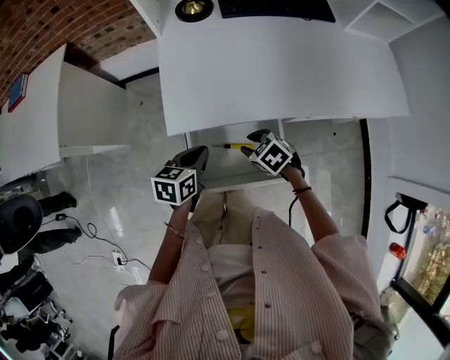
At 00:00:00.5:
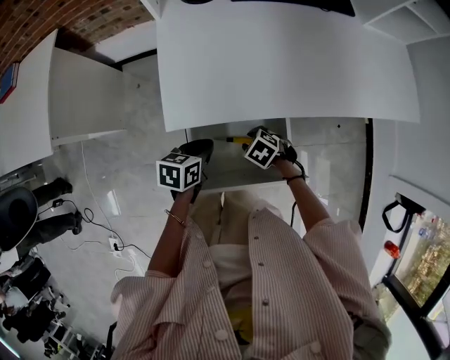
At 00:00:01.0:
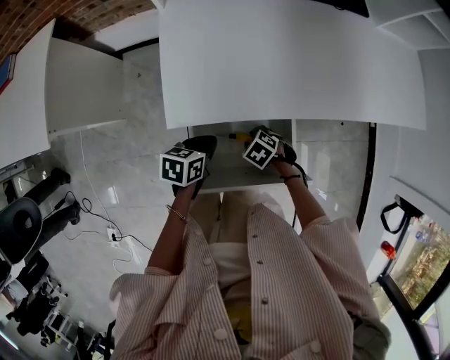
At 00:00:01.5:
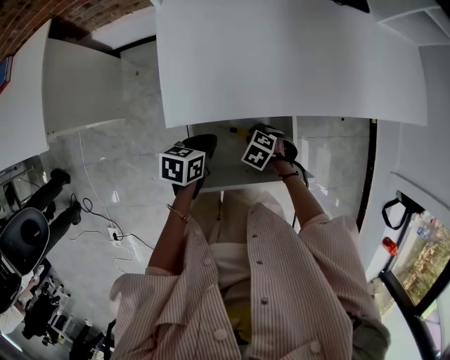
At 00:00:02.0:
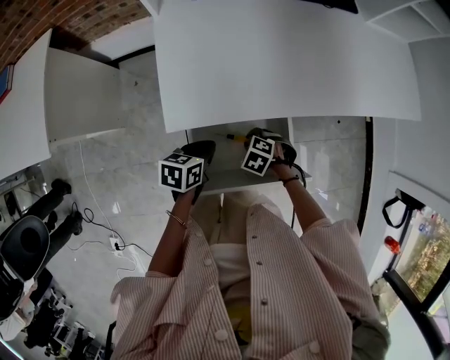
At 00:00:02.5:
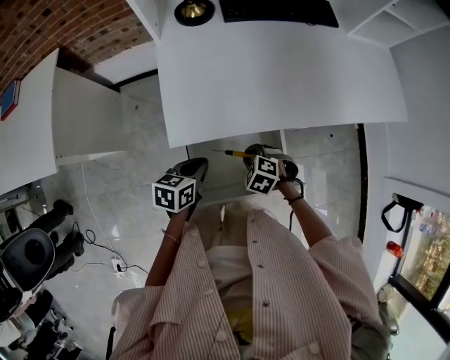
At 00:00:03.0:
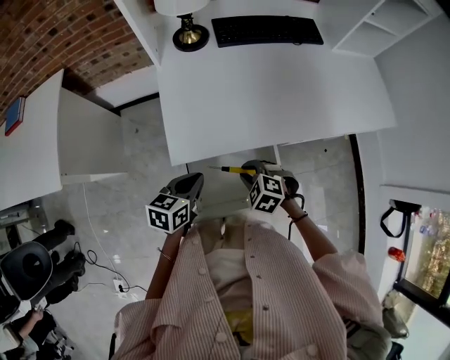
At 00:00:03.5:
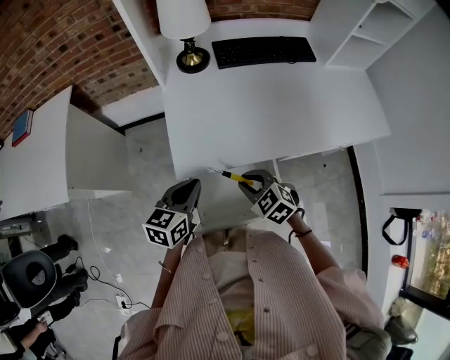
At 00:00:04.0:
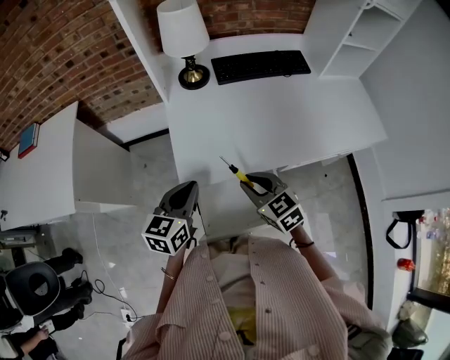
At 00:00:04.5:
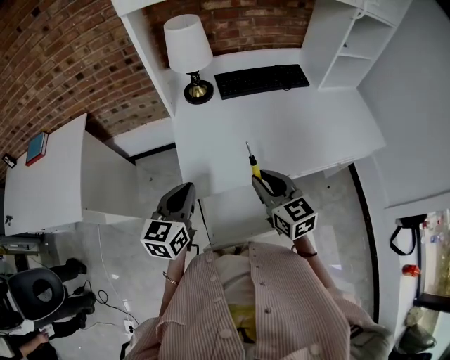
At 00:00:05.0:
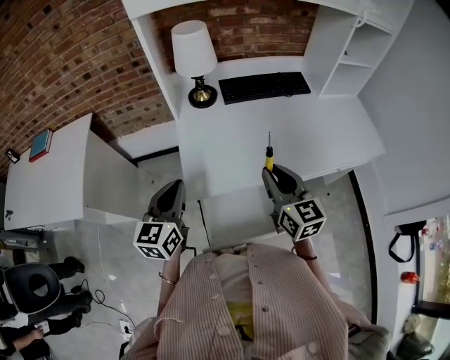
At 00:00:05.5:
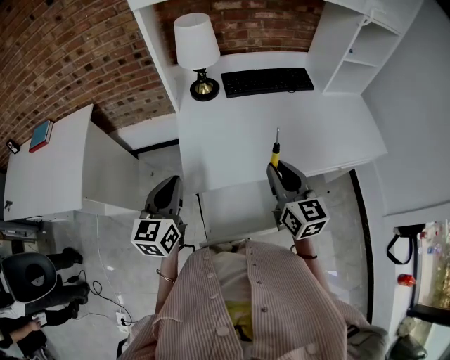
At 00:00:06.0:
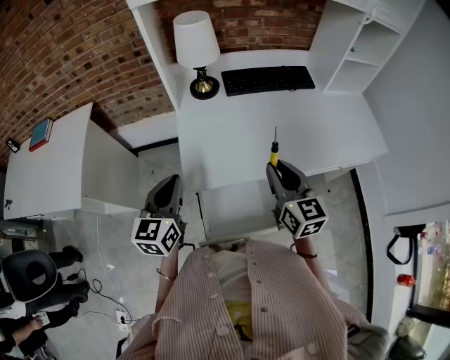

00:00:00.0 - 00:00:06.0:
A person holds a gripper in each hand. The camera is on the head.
00:00:00.0 - 00:00:02.0: Both grippers move downward, roughly 10 cm. The right gripper turns by approximately 30 degrees.
00:00:02.0 - 00:00:04.0: Both grippers move upward, some 25 cm. The left gripper swivels some 40 degrees. Meanwhile the right gripper points its fingers approximately 50 degrees further upward.
00:00:04.0 - 00:00:06.0: The right gripper shifts some 15 cm upward and to the right, and rotates roughly 30 degrees, while the left gripper shifts some 5 cm upward.

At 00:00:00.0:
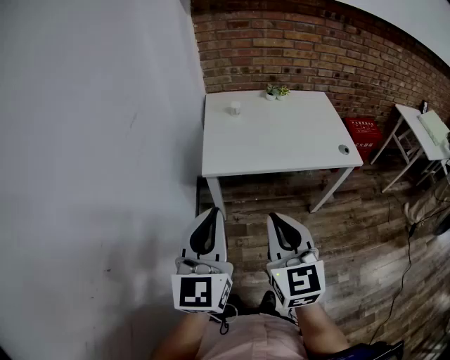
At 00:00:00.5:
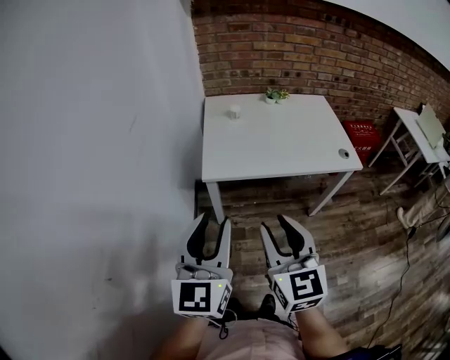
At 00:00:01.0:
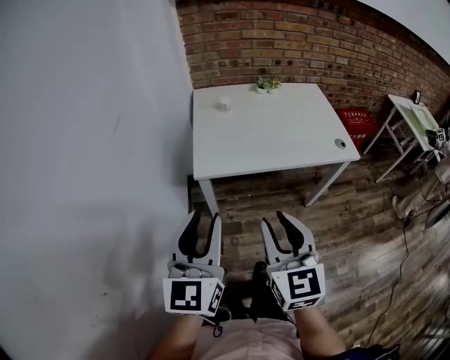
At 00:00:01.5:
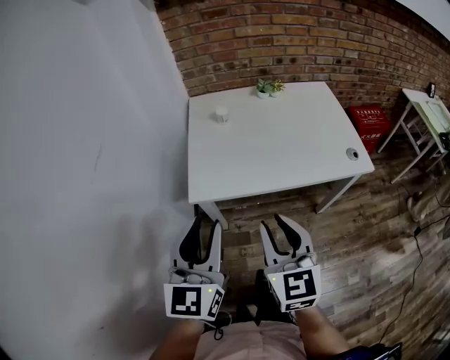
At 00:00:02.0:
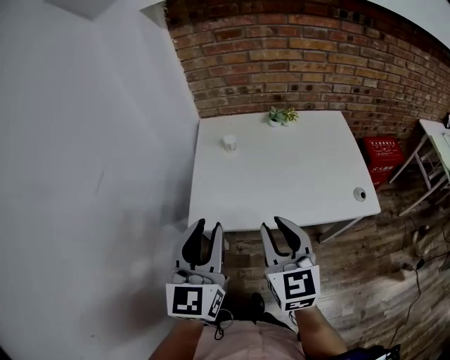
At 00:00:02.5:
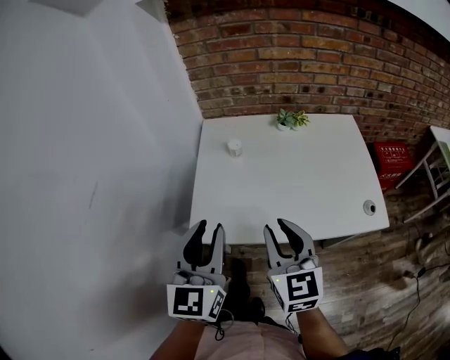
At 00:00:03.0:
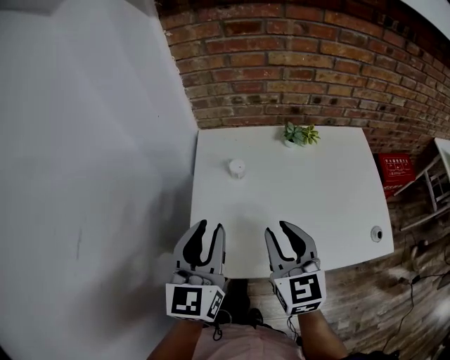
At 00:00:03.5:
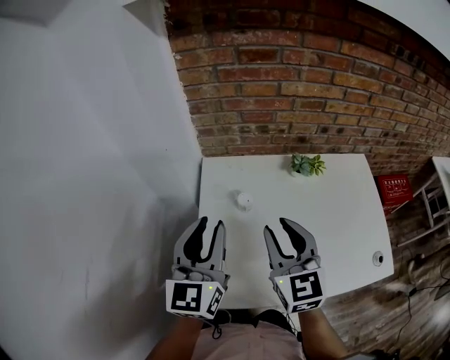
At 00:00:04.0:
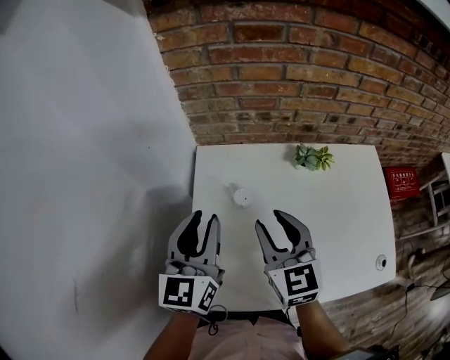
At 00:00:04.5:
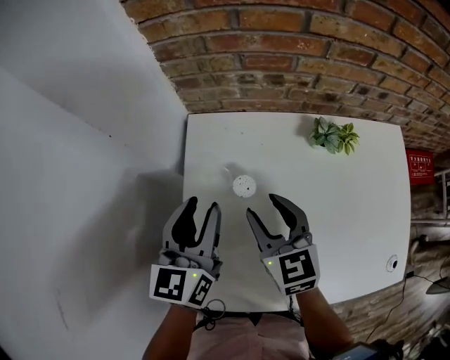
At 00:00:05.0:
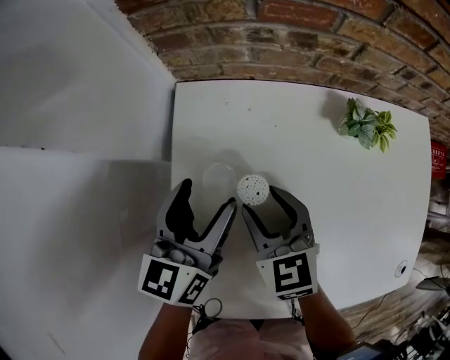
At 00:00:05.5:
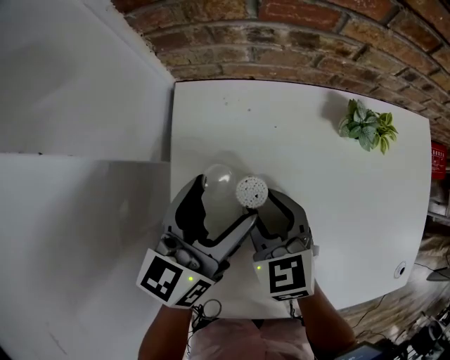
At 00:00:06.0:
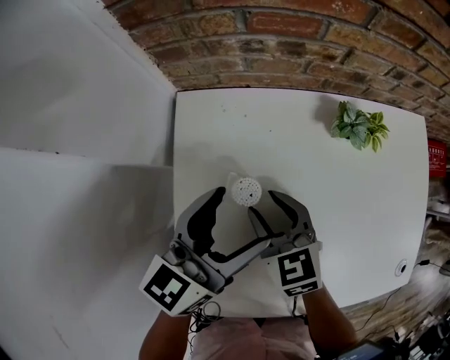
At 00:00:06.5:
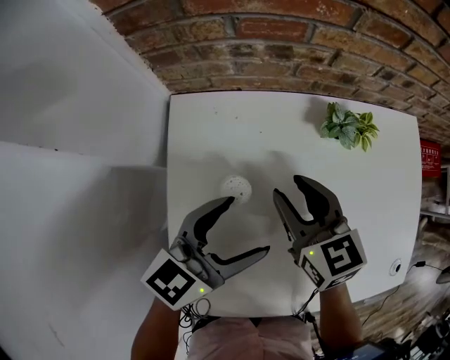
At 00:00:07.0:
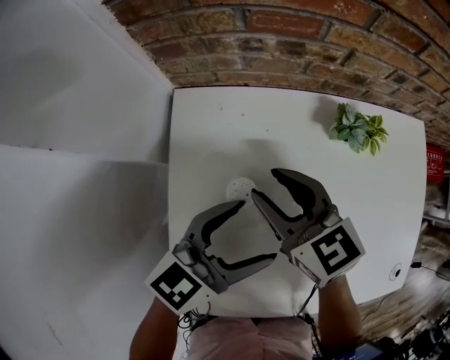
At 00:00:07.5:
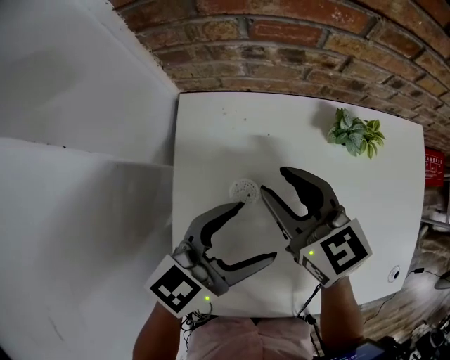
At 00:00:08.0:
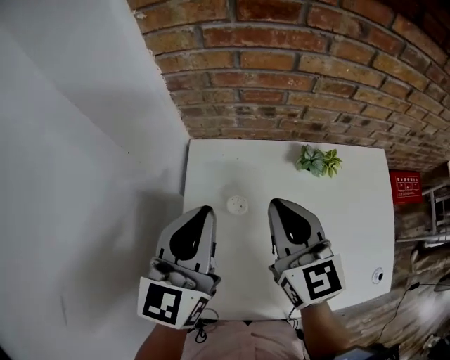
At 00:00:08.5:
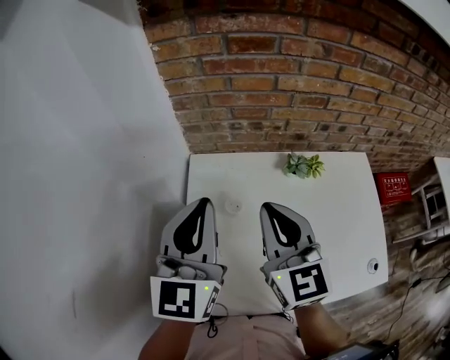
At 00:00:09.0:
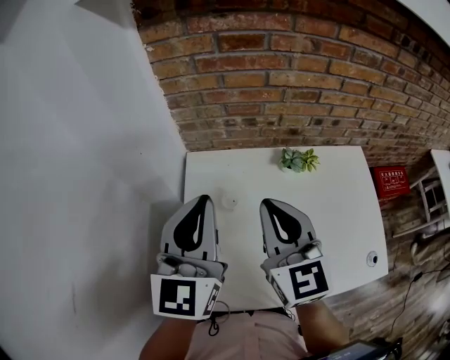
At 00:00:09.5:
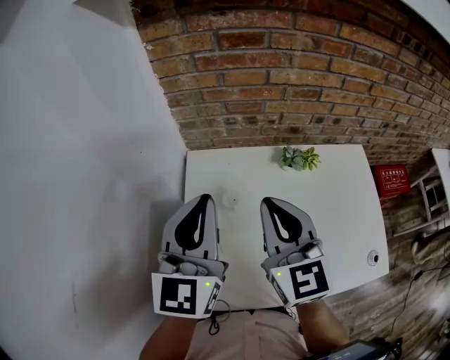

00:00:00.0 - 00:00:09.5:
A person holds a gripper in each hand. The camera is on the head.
00:00:00.0 - 00:00:02.0: Both grippers move forward, roughly 25 cm. The right gripper opens up.
00:00:02.0 - 00:00:04.0: The two grippers go about 35 cm forward.
00:00:04.0 - 00:00:05.5: The two grippers go roughly 20 cm downward and forward. The right gripper changes its angle by roughly 20 degrees. Meanwhile the left gripper changes its angle by about 20 degrees, and opens.
00:00:05.5 - 00:00:07.5: The left gripper moves to the right and backward, approximately 10 cm, and turns by approximately 30 degrees, while the right gripper moves upward, approximately 10 cm.
00:00:07.5 - 00:00:09.5: The right gripper moves upward and backward, about 25 cm, swivels some 30 degrees, and closes up, while the left gripper heads upward, covering approximately 25 cm, rotates approximately 50 degrees, and closes its fingers.

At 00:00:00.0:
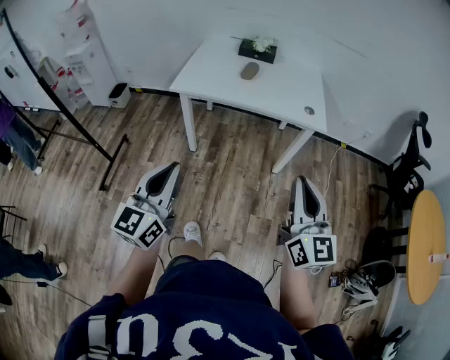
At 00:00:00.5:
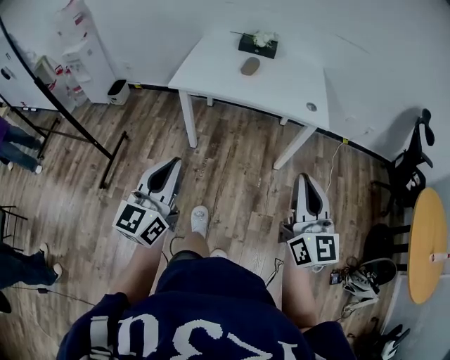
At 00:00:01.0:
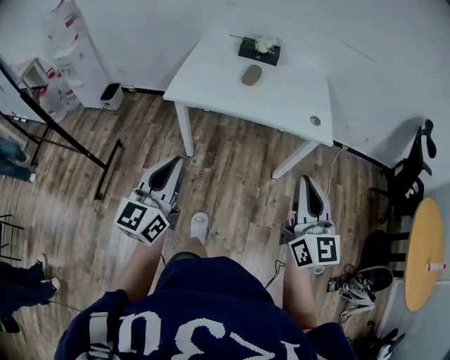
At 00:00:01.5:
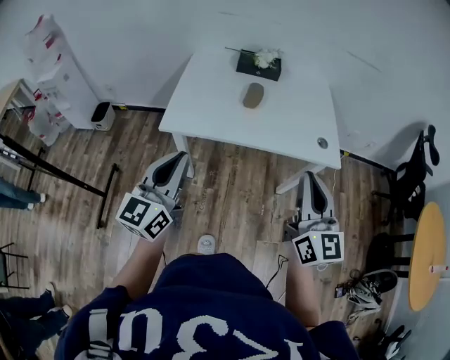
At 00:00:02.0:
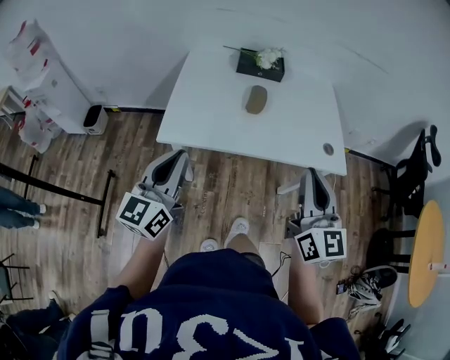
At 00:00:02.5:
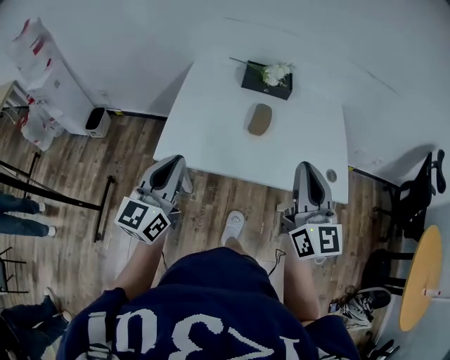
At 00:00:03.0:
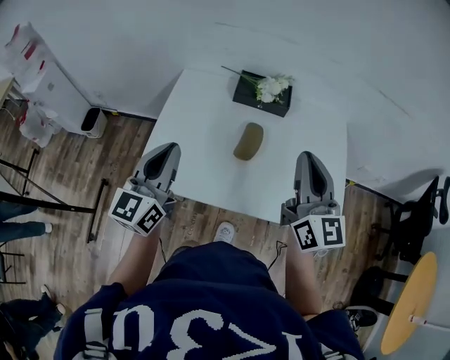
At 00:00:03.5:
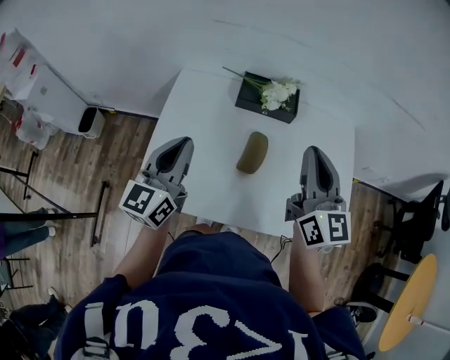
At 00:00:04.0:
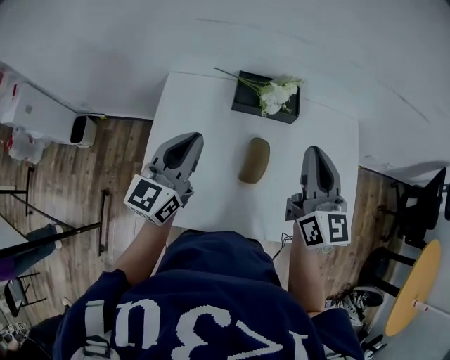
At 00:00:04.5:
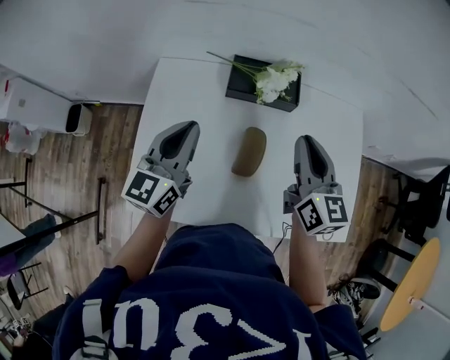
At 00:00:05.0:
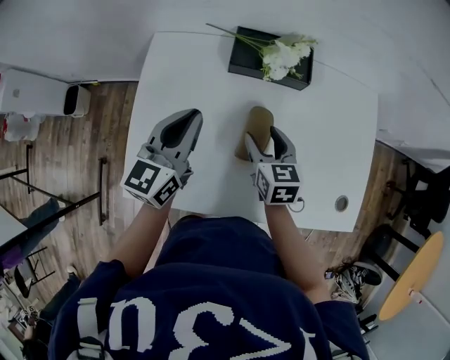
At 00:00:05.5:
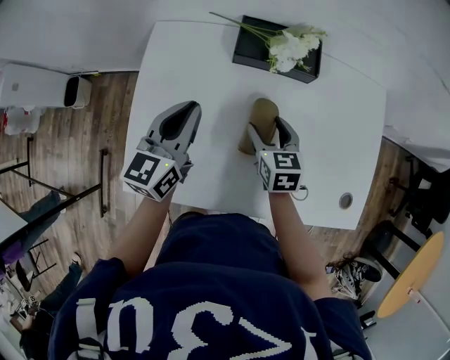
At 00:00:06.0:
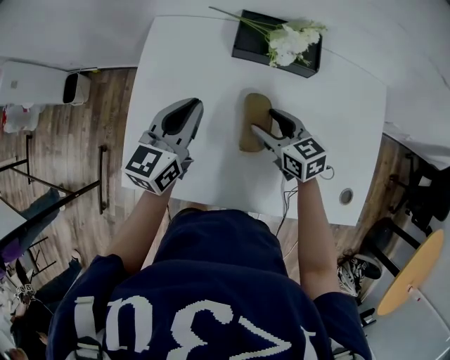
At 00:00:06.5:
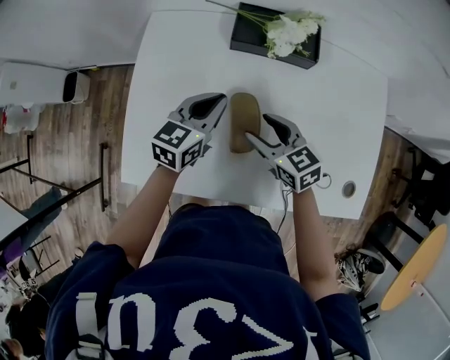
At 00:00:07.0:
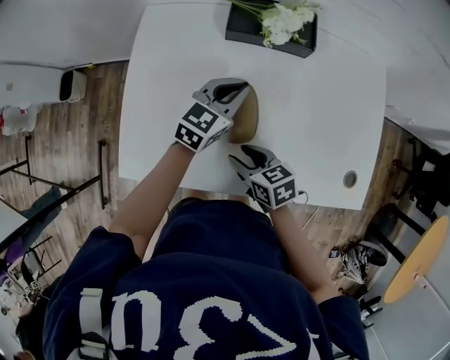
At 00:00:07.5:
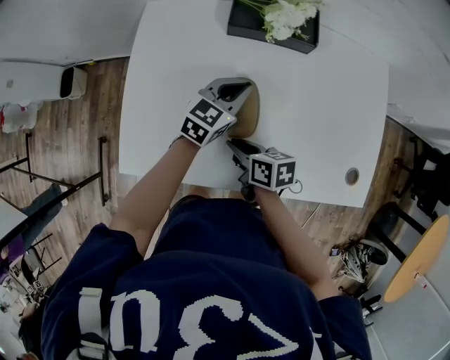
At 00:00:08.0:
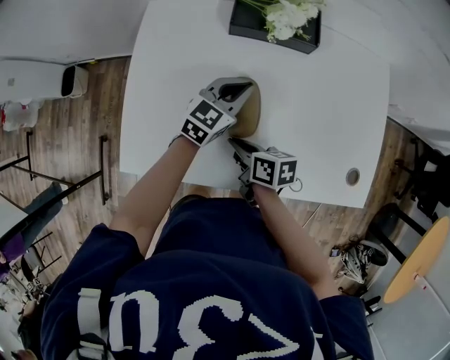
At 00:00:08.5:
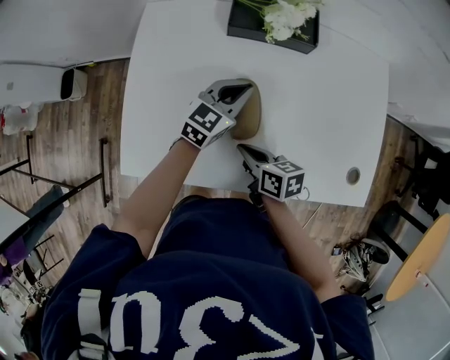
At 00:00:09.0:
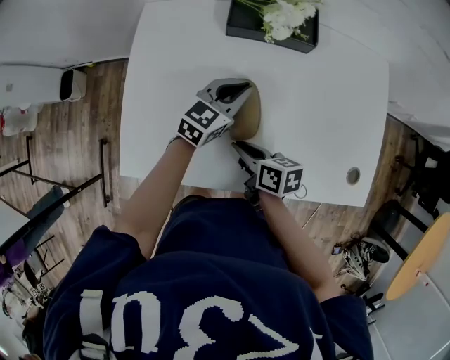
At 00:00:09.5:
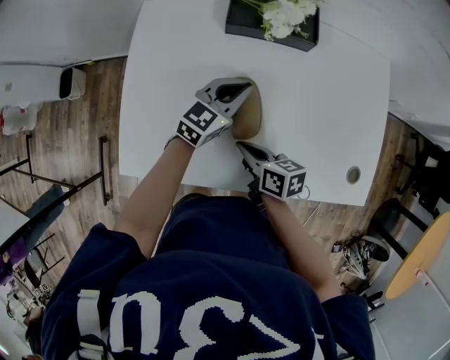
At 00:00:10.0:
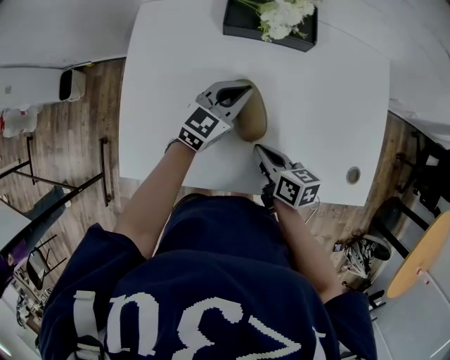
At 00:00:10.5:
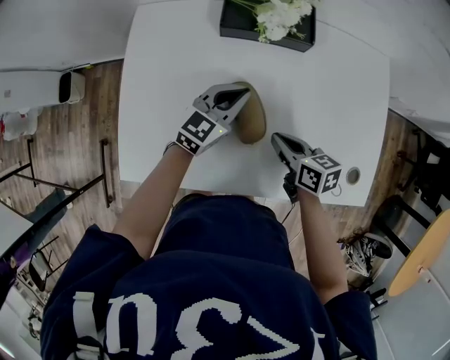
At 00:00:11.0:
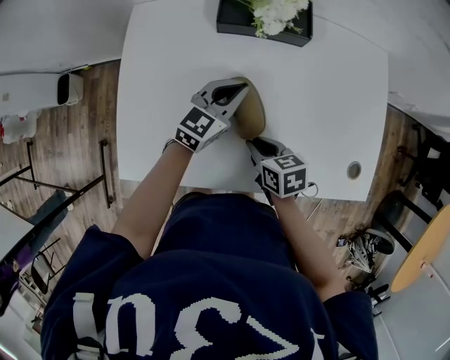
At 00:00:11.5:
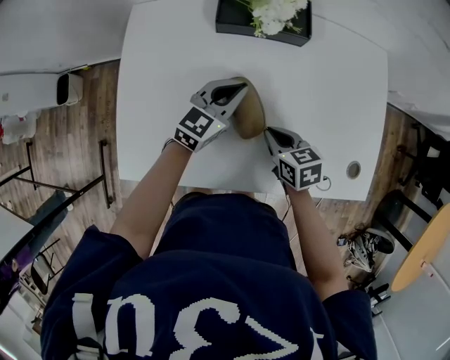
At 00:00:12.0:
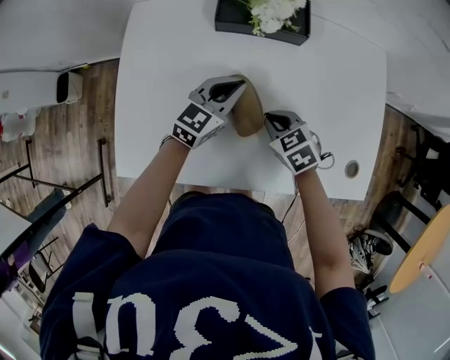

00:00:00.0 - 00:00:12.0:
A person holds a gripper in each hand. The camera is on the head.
00:00:00.0 - 00:00:02.0: Both grippers travel together forward, approximately 35 cm.
00:00:02.0 - 00:00:04.0: The pair of grippers is taken forward, about 40 cm.
00:00:04.0 - 00:00:06.0: The left gripper is displaced downward by some 10 cm; the right gripper moves downward, some 30 cm, tilts its fingers some 30 degrees downward, and opens.
00:00:06.0 - 00:00:08.0: The right gripper travels backward and to the left by roughly 15 cm, rolls clockwise, seen from behind, by approximately 40 degrees, and closes its fingers. The left gripper travels to the right and downward by approximately 15 cm, and changes its angle by some 30 degrees.
00:00:08.0 - 00:00:10.0: The right gripper shifts some 10 cm to the right.
00:00:10.0 - 00:00:12.0: The right gripper is displaced forward by about 5 cm, and twists about 50 degrees counterclockwise, seen from behind.
